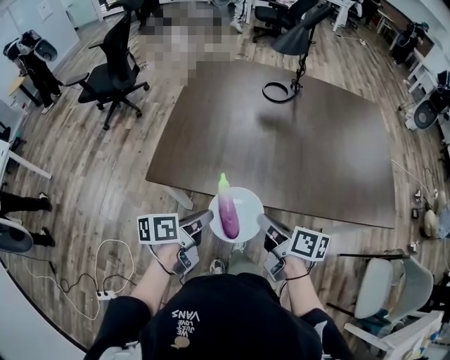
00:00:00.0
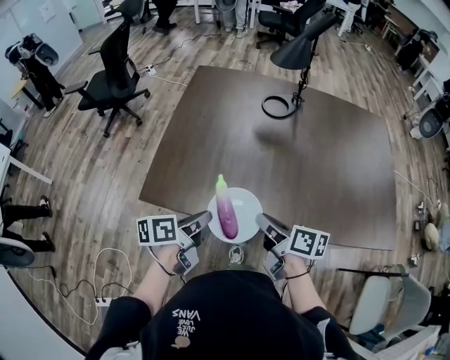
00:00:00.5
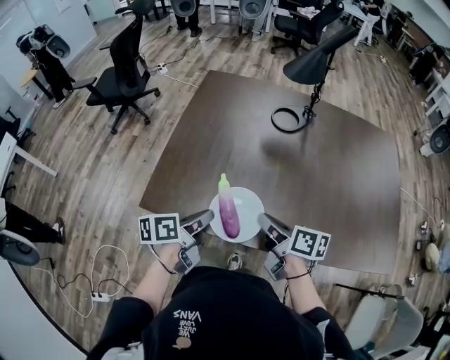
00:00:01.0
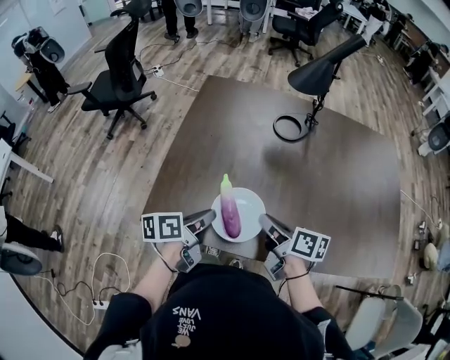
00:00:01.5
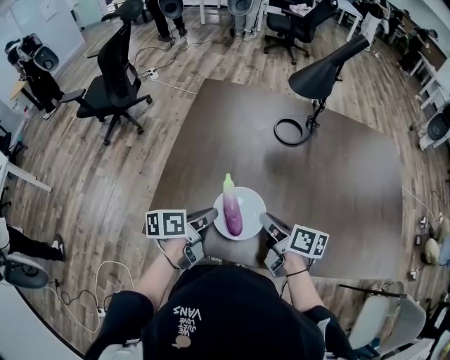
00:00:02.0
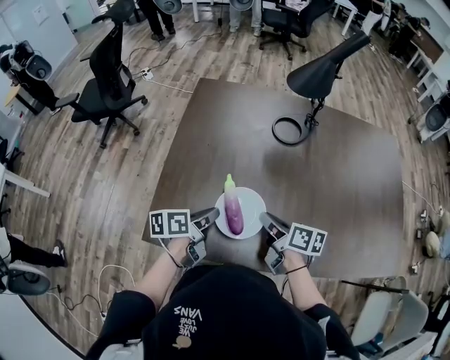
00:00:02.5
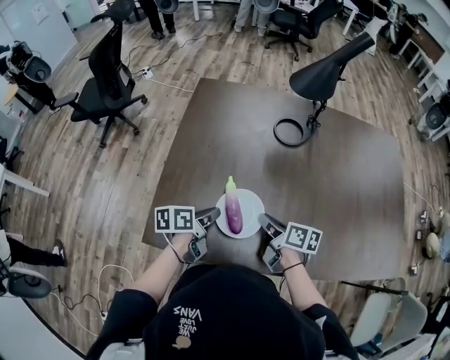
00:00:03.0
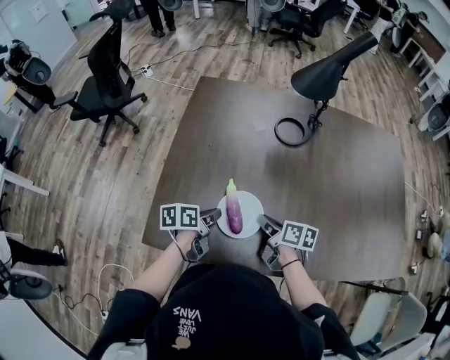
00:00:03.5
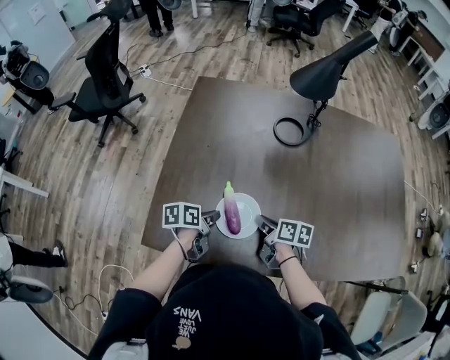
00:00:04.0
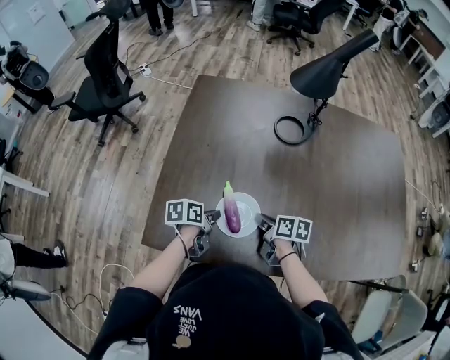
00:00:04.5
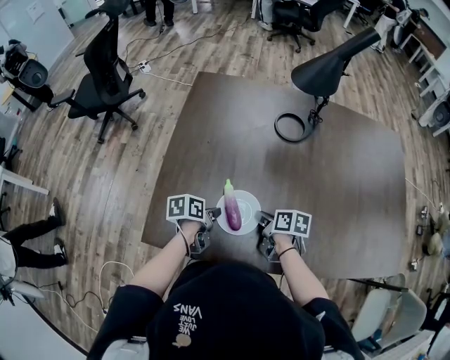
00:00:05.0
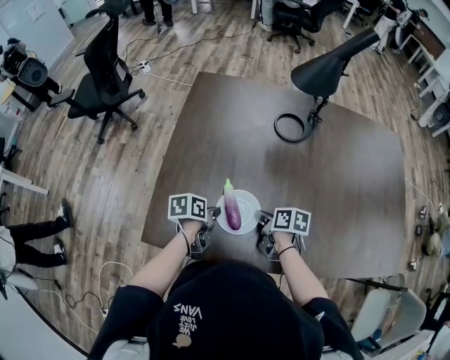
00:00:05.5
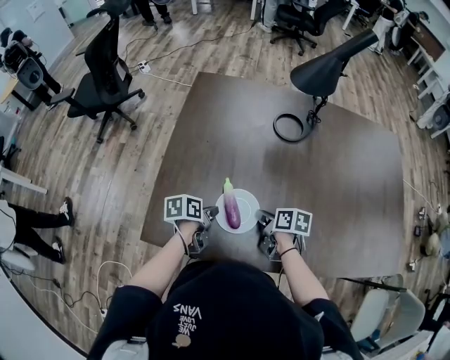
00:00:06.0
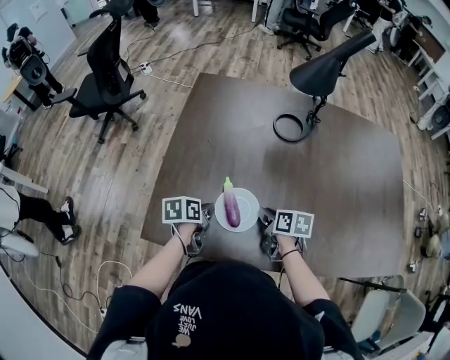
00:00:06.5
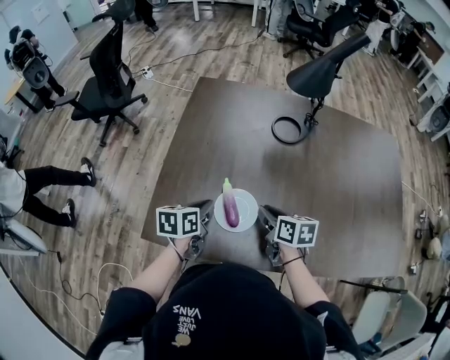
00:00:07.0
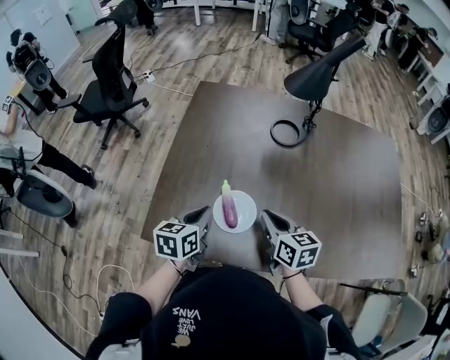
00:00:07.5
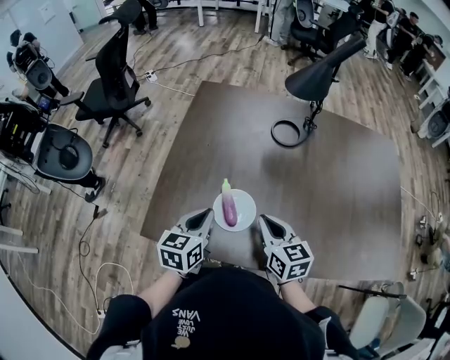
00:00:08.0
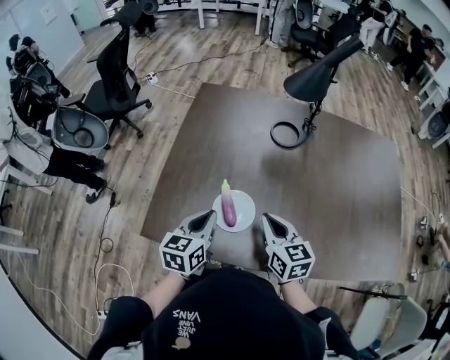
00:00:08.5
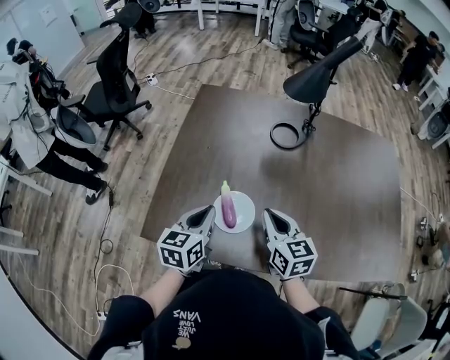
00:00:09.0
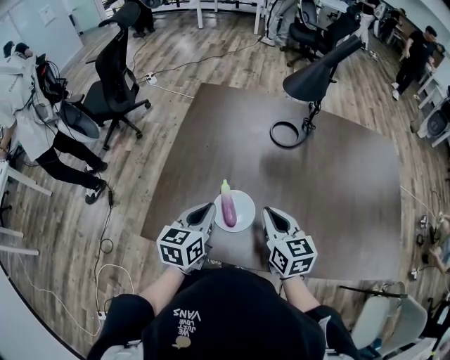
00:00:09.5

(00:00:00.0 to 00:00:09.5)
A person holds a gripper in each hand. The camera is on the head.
00:00:00.0 - 00:00:02.0: Both grippers move forward, roughly 25 cm.
00:00:02.0 - 00:00:04.0: The two grippers go roughly 10 cm downward.
00:00:04.0 - 00:00:05.5: The grippers make only small movements.
00:00:05.5 - 00:00:07.5: Both grippers travel together upward, about 15 cm. The left gripper swivels roughly 40 degrees. Meanwhile the right gripper changes its angle by about 40 degrees.
00:00:07.5 - 00:00:09.5: The grippers make only small movements.

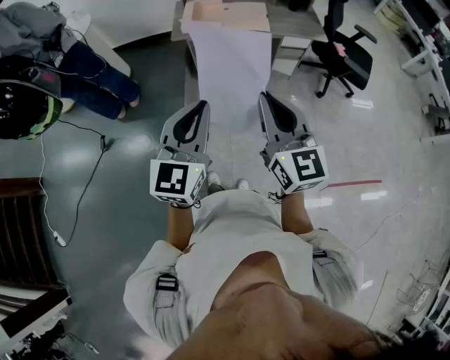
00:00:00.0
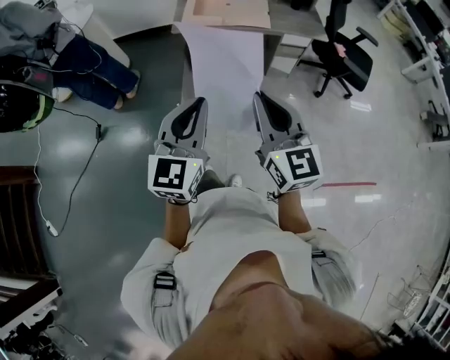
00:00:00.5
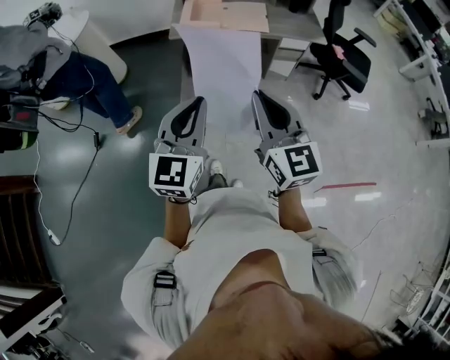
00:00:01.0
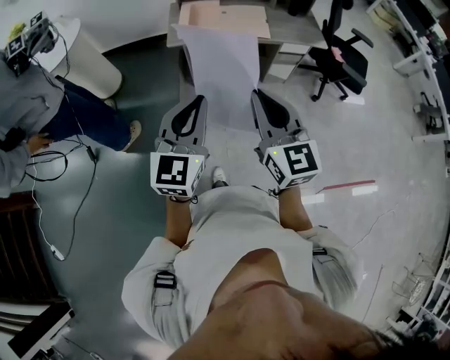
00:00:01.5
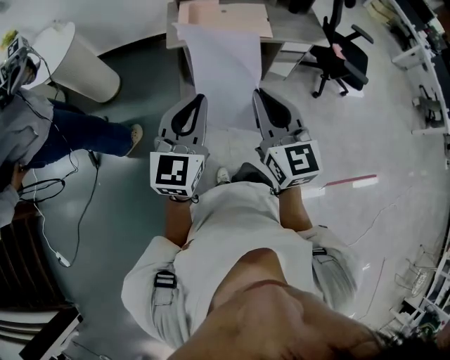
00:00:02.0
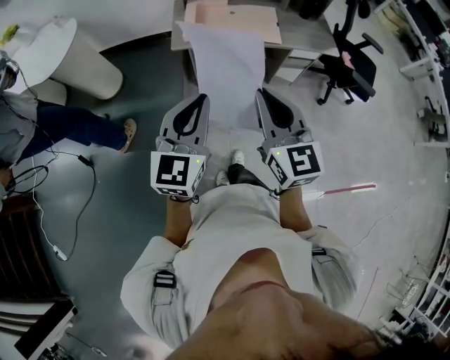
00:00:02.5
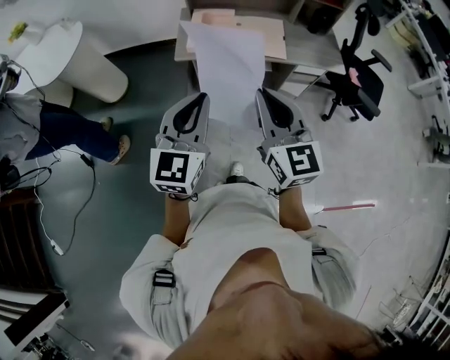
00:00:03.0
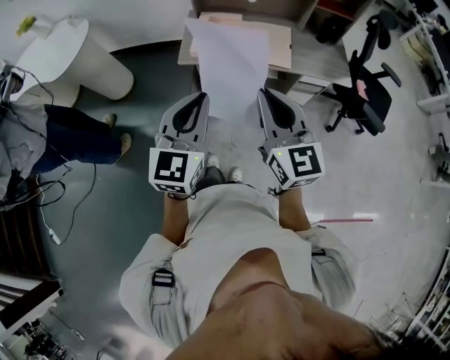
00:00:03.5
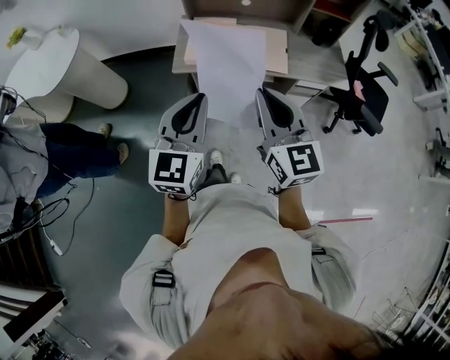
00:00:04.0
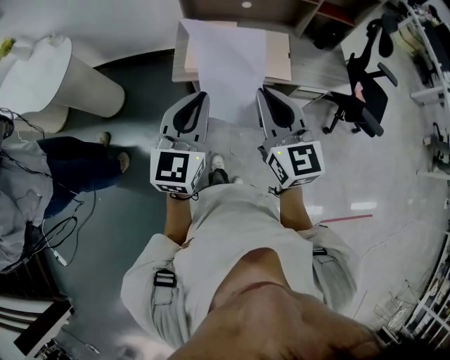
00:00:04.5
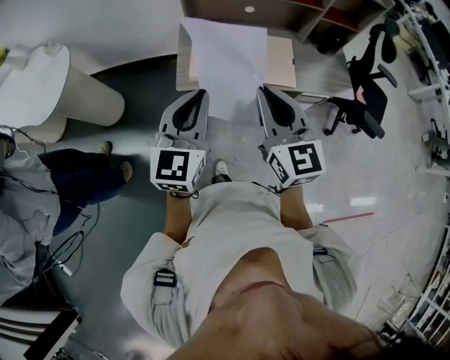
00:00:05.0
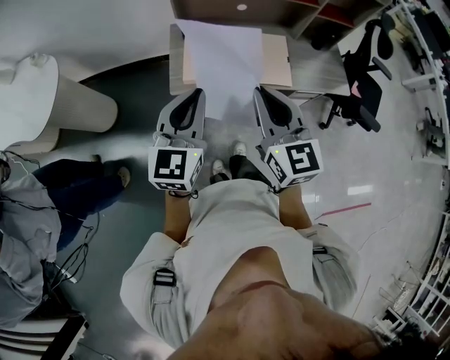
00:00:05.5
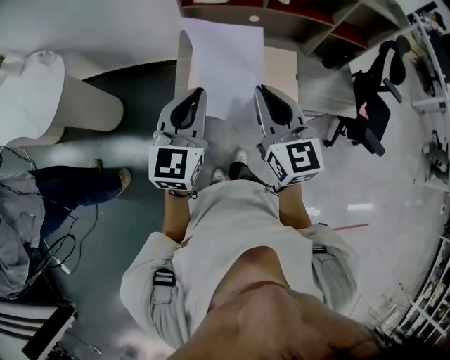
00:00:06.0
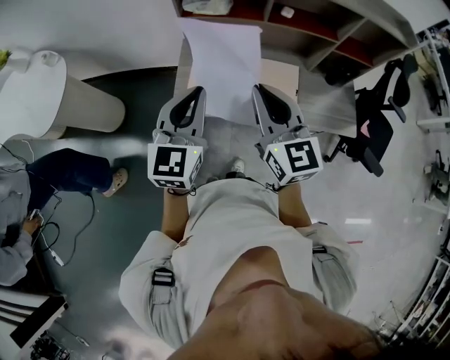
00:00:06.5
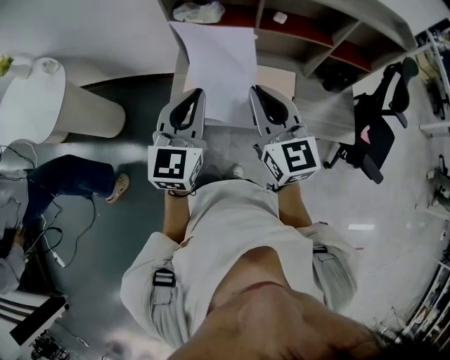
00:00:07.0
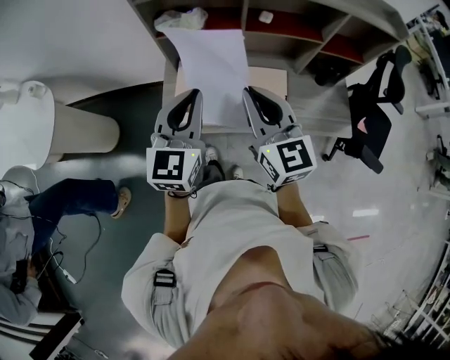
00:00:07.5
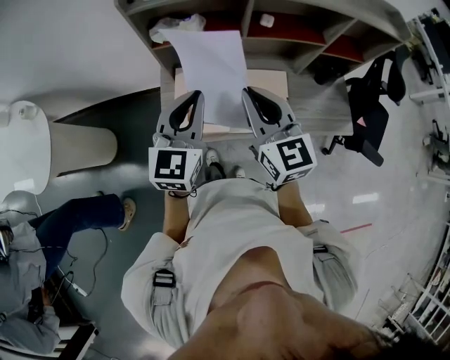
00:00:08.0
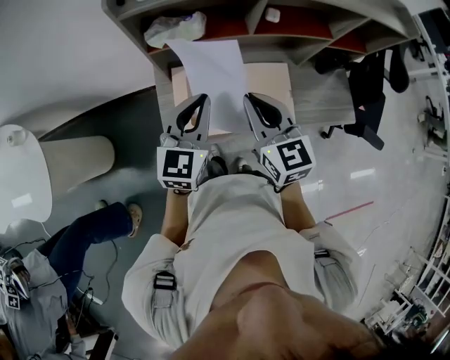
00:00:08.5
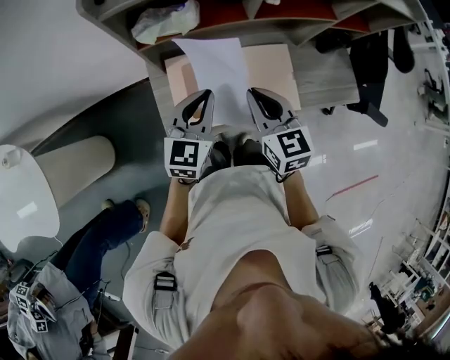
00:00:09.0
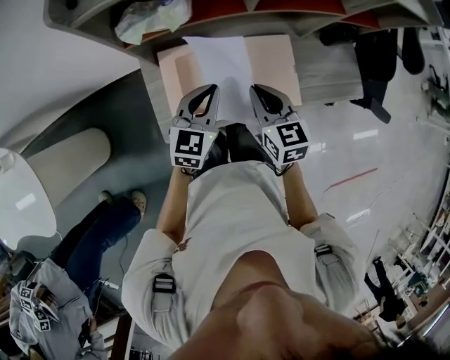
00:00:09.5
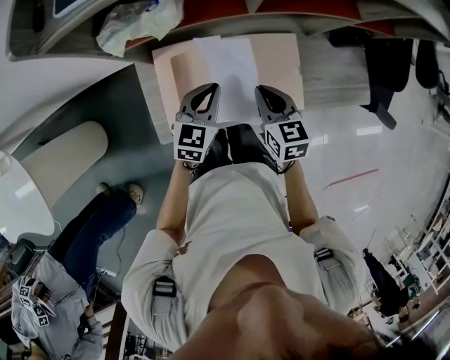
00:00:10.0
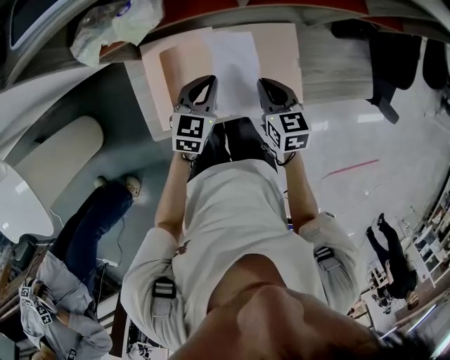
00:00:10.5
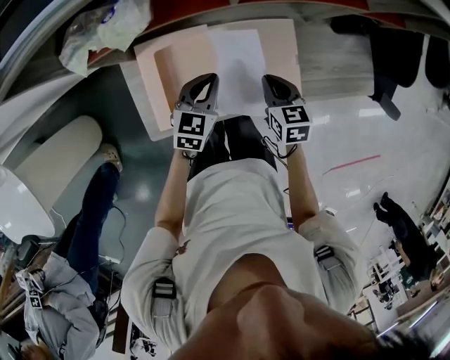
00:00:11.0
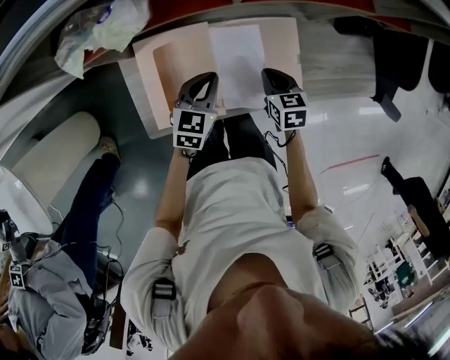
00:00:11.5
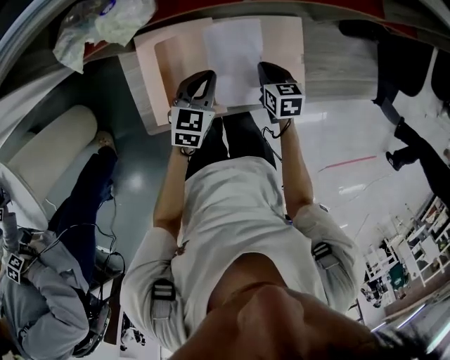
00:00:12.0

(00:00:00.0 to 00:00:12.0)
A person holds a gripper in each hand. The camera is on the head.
00:00:00.0 - 00:00:02.0: Both grippers move forward and to the left, about 15 cm.
00:00:02.0 - 00:00:04.0: Both grippers move forward, some 20 cm.
00:00:04.0 - 00:00:06.0: Both grippers travel together forward, approximately 25 cm.
00:00:06.0 - 00:00:08.0: Both grippers travel together forward, approximately 20 cm.
00:00:08.0 - 00:00:10.0: Both grippers move downward, roughly 25 cm. The right gripper changes its angle by roughly 30 degrees. Meanwhile the left gripper changes its angle by approximately 30 degrees.
00:00:10.0 - 00:00:12.0: The right gripper is displaced downward by roughly 15 cm. Meanwhile the left gripper is displaced downward by about 10 cm.

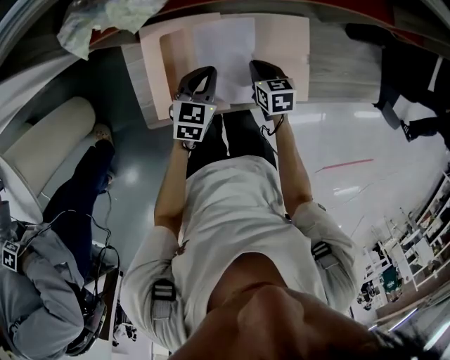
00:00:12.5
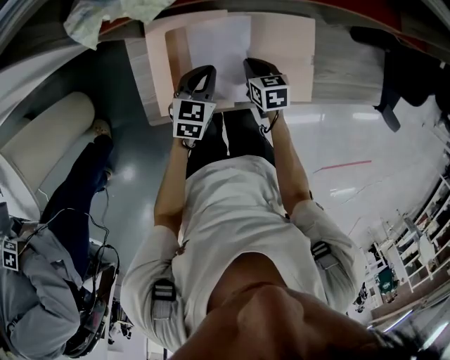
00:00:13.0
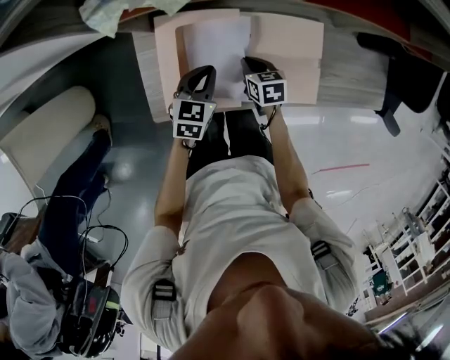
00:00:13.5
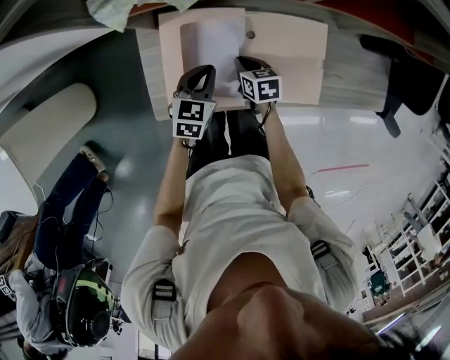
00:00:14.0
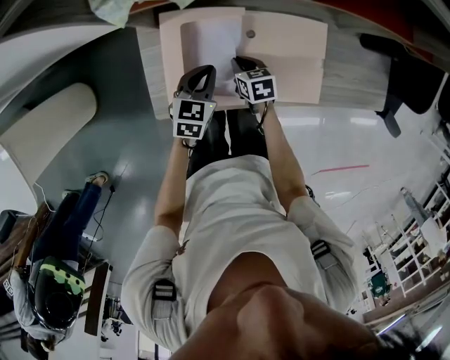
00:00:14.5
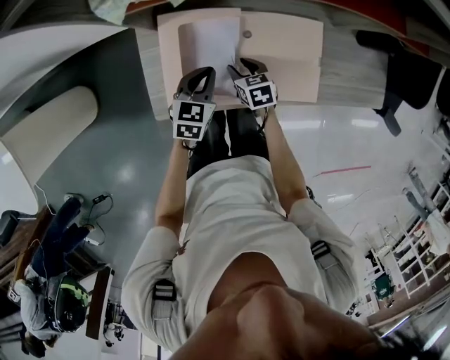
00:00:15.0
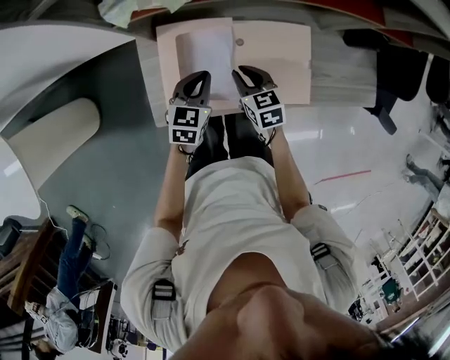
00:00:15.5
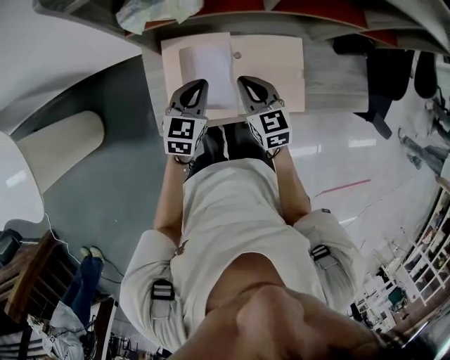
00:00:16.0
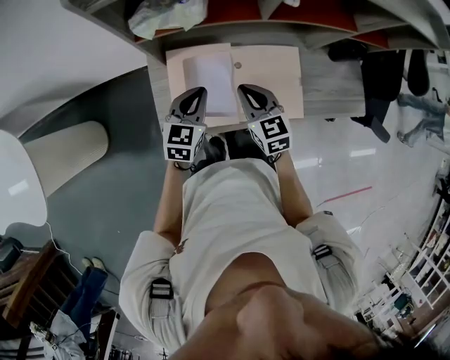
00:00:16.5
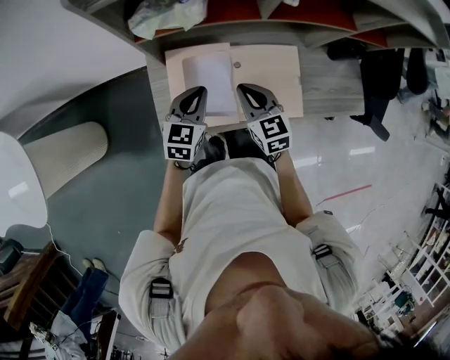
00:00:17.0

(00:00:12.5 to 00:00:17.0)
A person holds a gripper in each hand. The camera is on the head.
00:00:12.5 - 00:00:14.5: The right gripper heads to the left, covering about 10 cm. Meanwhile the left gripper goes approximately 5 cm to the left.
00:00:14.5 - 00:00:17.0: The right gripper moves upward, roughly 25 cm, turns by some 30 degrees, and opens, then closes again, while the left gripper travels upward by some 15 cm.

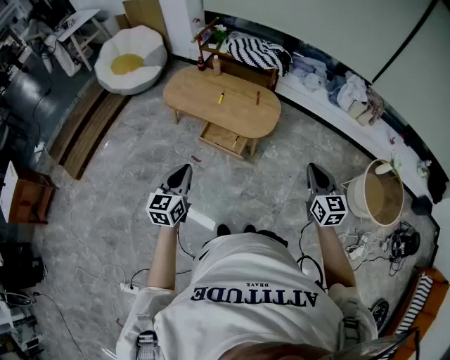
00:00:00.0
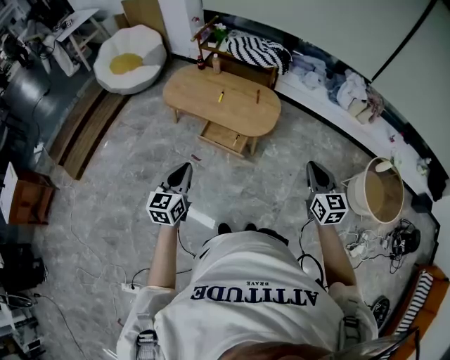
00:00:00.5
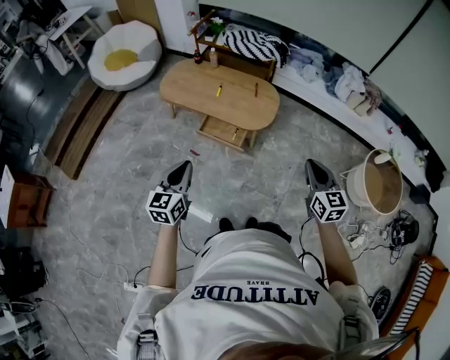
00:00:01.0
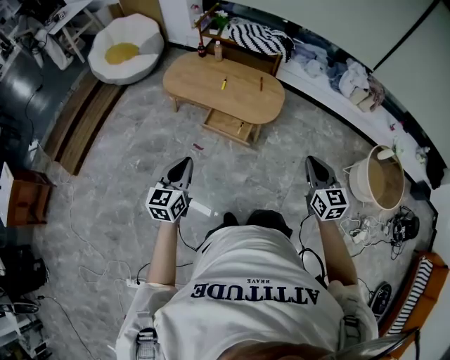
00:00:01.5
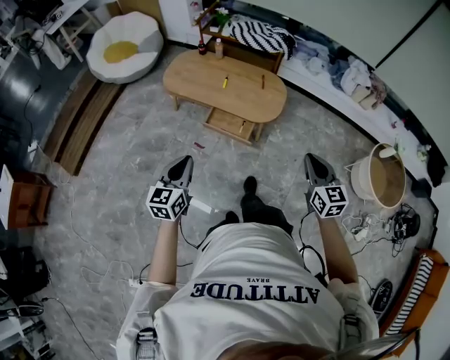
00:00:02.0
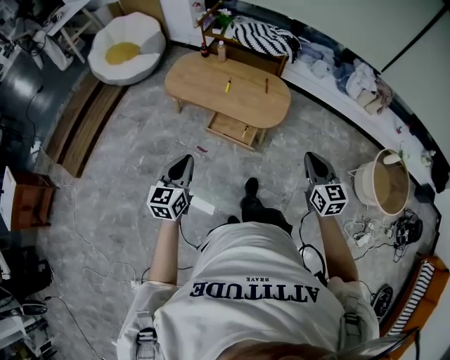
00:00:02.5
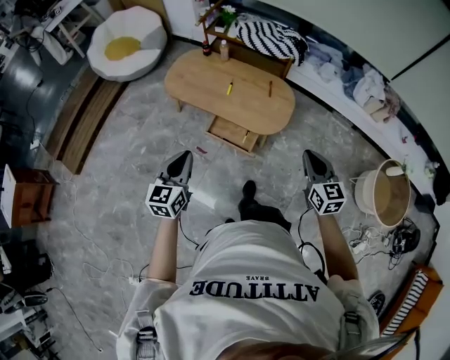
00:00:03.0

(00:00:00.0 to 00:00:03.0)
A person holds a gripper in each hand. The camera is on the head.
00:00:00.0 - 00:00:01.5: The two grippers go roughly 10 cm to the left.
00:00:01.5 - 00:00:03.0: Both grippers move forward, approximately 20 cm.
